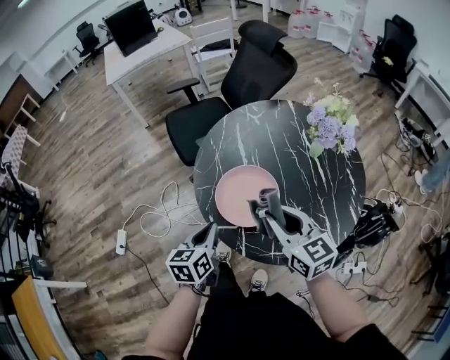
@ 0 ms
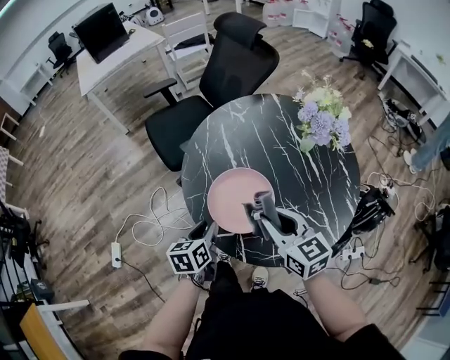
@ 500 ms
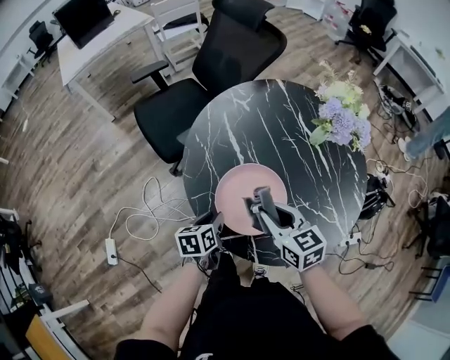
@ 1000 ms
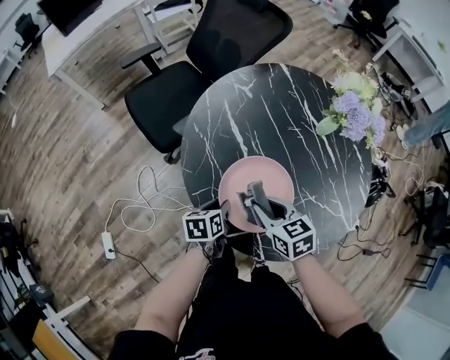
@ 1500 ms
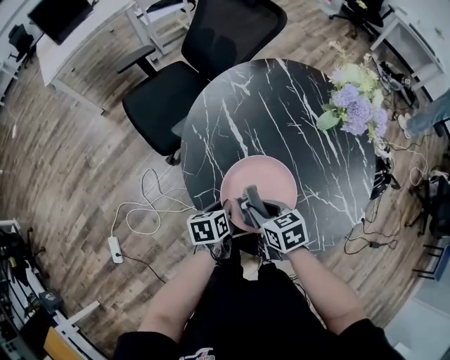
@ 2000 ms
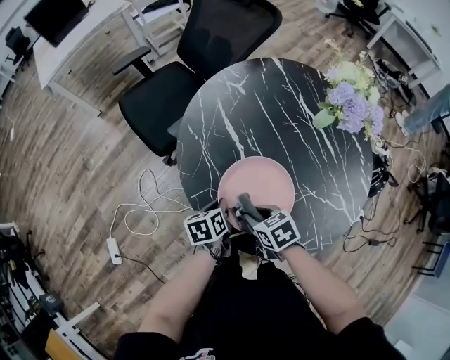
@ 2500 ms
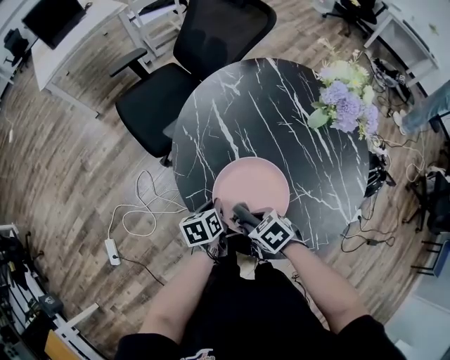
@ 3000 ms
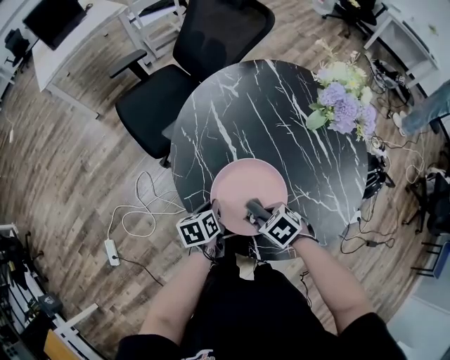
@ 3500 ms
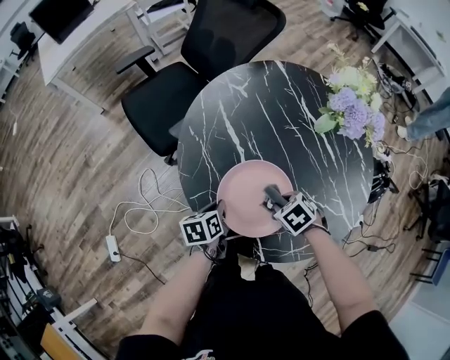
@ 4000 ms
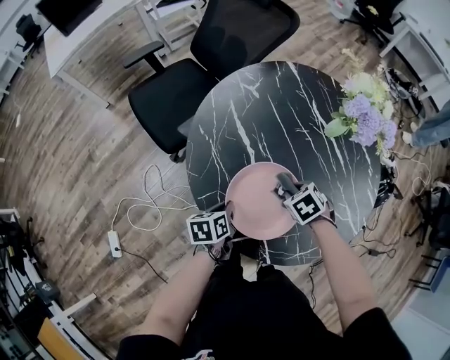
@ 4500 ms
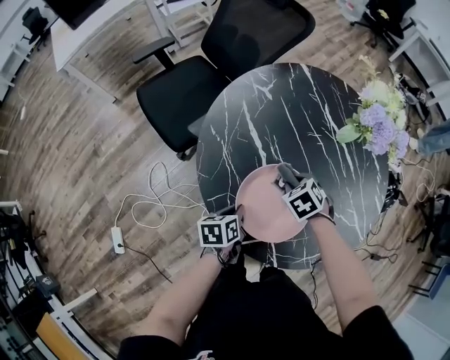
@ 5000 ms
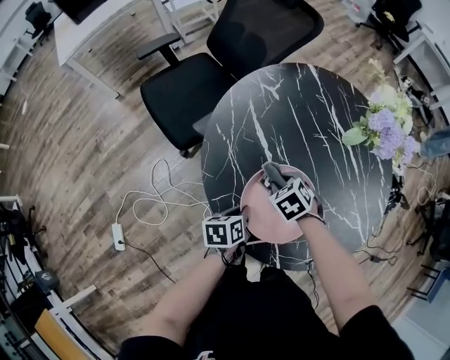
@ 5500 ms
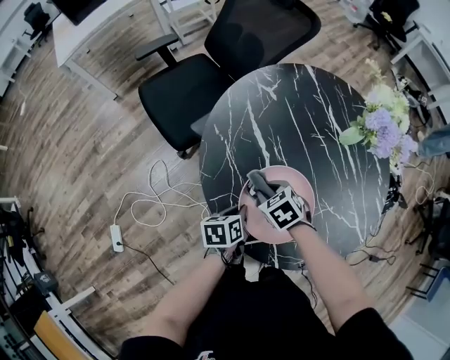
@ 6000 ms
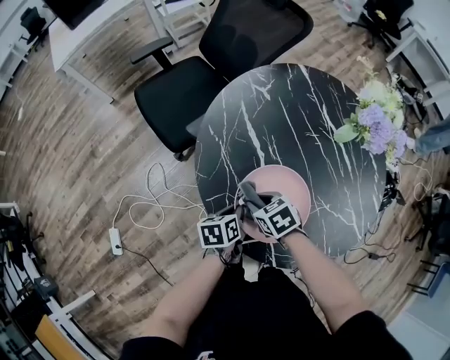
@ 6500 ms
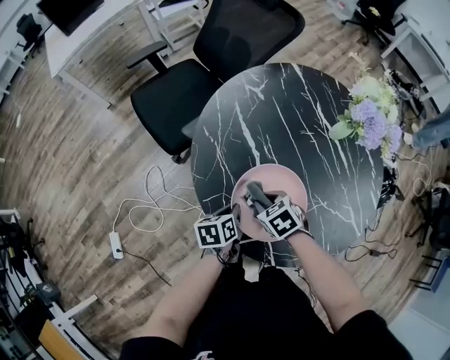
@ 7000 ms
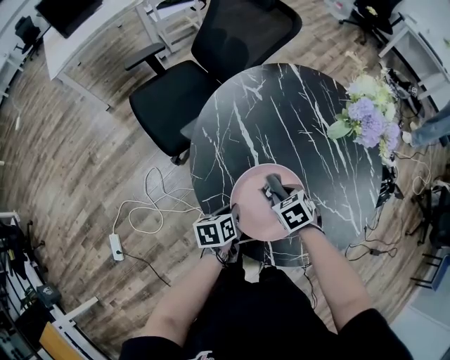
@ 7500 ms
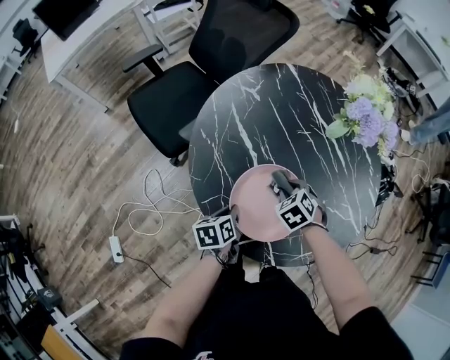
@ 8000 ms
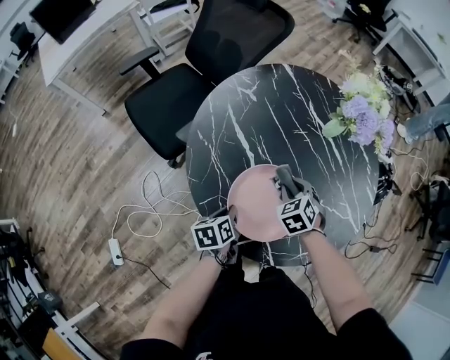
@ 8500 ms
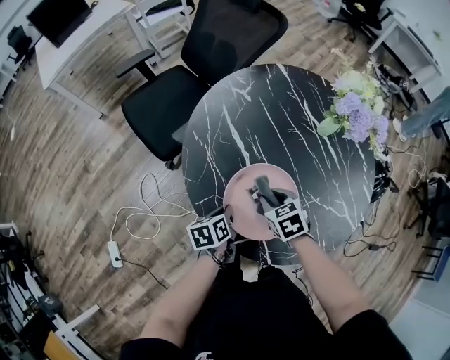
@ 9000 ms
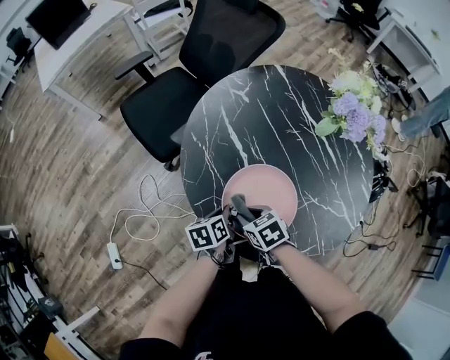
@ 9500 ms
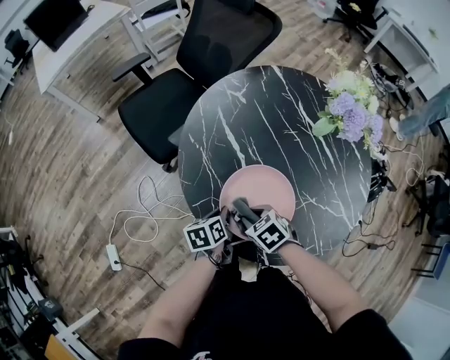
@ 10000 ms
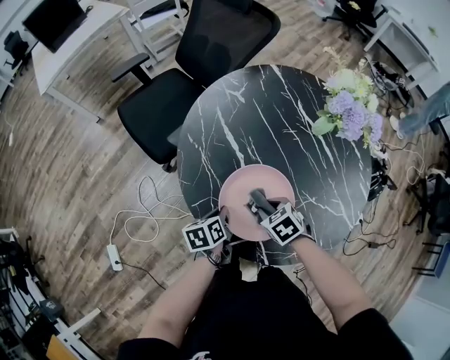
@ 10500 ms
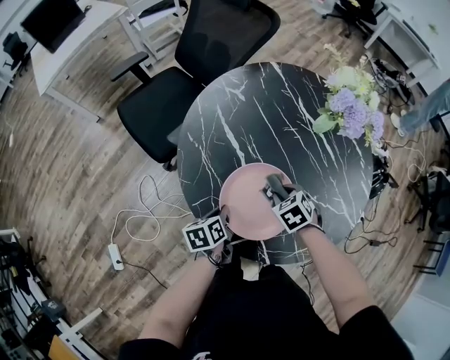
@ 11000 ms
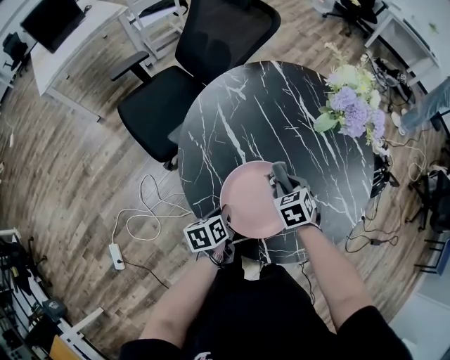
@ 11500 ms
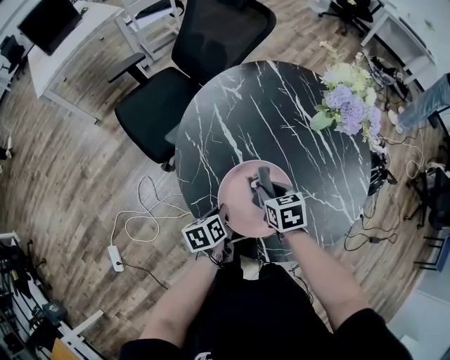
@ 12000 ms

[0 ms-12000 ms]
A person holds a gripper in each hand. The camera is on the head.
0 ms to 2000 ms: The left gripper heads downward and forward, covering about 25 cm, changes its angle by some 30 degrees, and opens, then closes once more; the right gripper is displaced downward, to the left and forward by approximately 25 cm, and tips its fingers downward by some 40 degrees.
2000 ms to 4000 ms: The right gripper moves approximately 10 cm, and changes its angle by approximately 30 degrees.
4000 ms to 6000 ms: The right gripper moves some 15 cm.
6000 ms to 8000 ms: The right gripper ends up some 10 cm from where it was.
8000 ms to 10000 ms: The right gripper ends up approximately 15 cm from where it was, and changes its angle by approximately 20 degrees.
10000 ms to 12000 ms: The right gripper ends up some 10 cm from where it was, and rotates approximately 30 degrees.

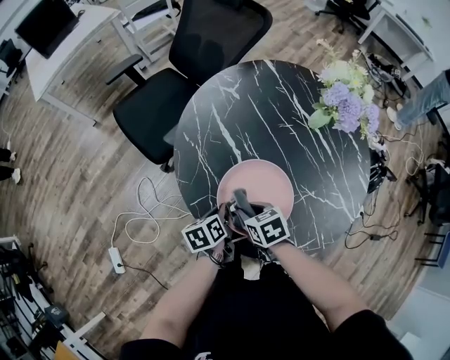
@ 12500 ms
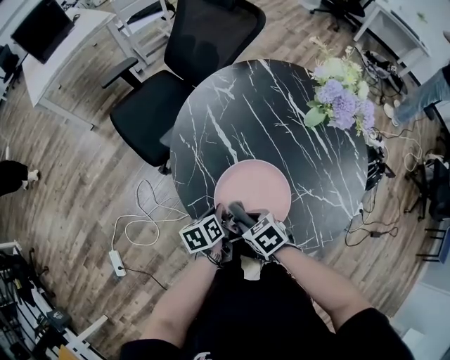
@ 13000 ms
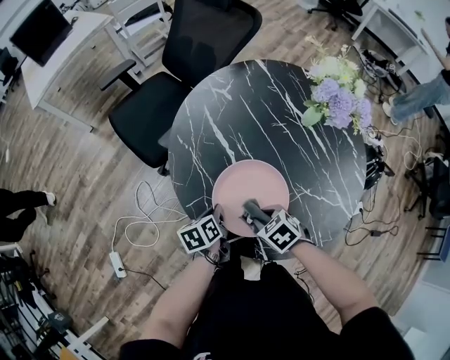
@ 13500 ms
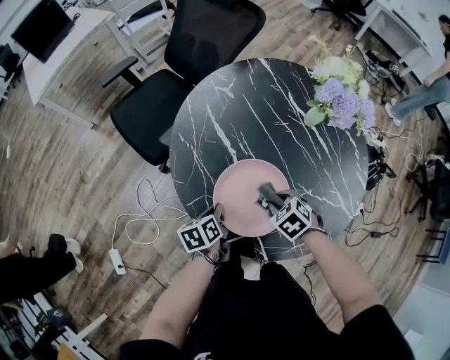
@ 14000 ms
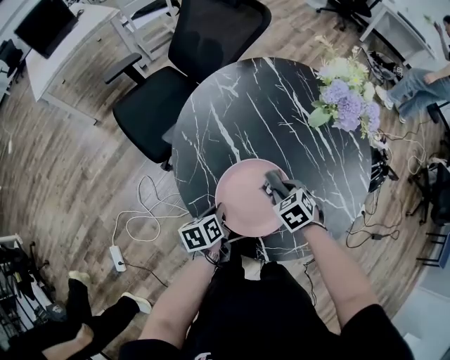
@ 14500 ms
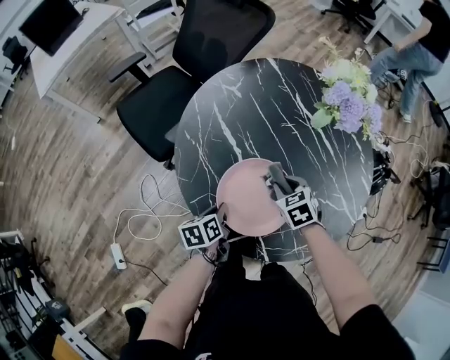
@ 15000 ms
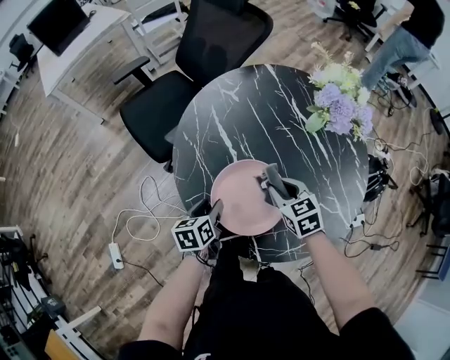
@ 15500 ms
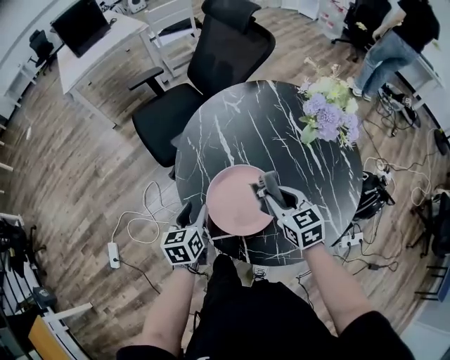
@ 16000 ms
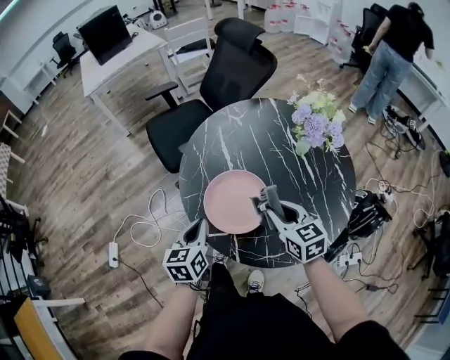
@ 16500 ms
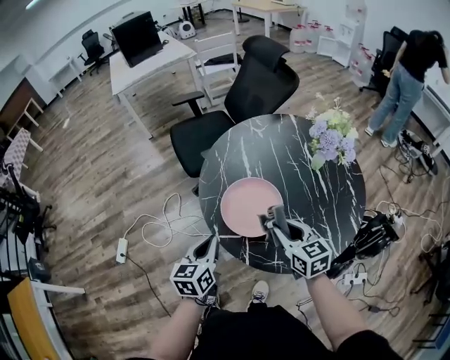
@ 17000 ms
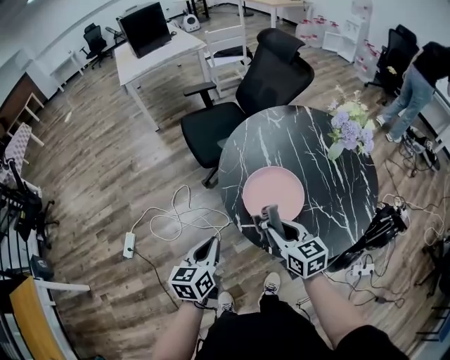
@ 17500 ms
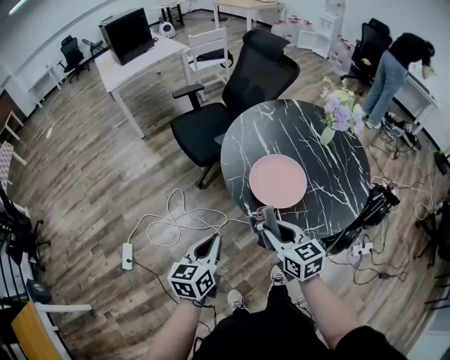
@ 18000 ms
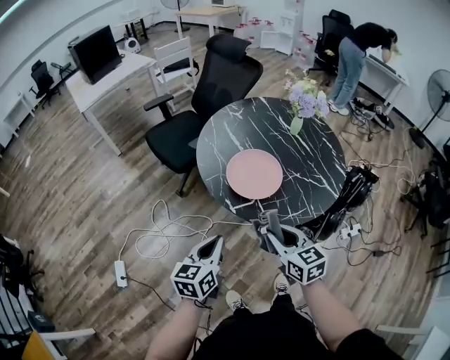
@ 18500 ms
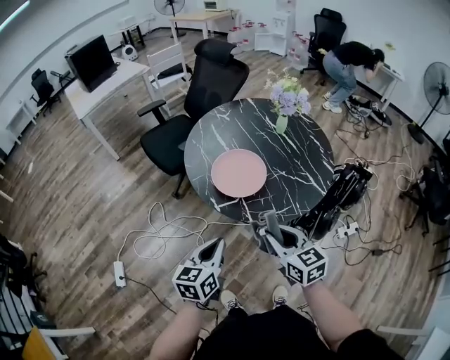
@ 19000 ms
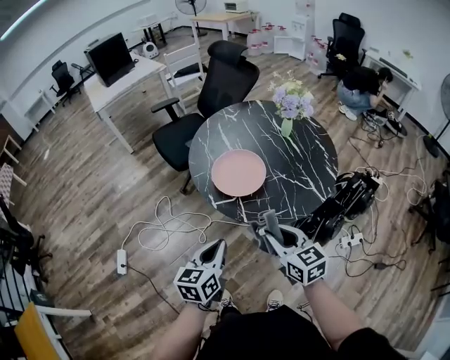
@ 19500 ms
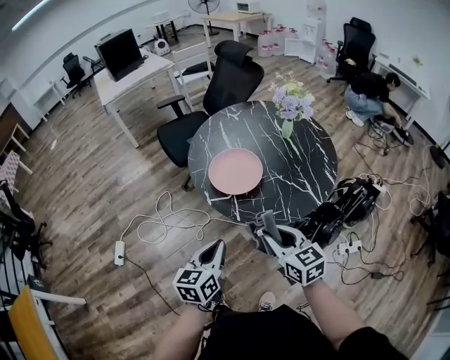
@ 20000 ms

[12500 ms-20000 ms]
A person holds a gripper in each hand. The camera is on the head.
12500 ms to 14500 ms: The right gripper goes roughly 15 cm to the right, and turns by approximately 30 degrees.
14500 ms to 16500 ms: The grippers both shift upward and backward by approximately 20 cm. The right gripper tilts its fingers roughly 40 degrees upward, while the left gripper rotates some 30 degrees, and opens, then closes again.
16500 ms to 18000 ms: Both grippers travel together to the left and backward, about 25 cm.
18000 ms to 20000 ms: The two grippers go approximately 25 cm to the right and backward.

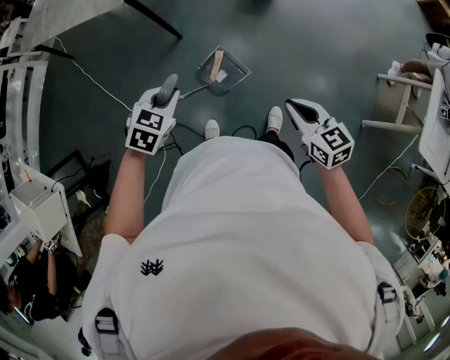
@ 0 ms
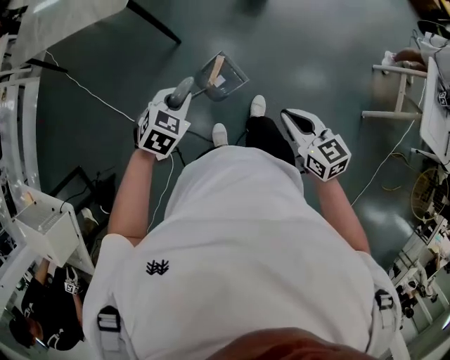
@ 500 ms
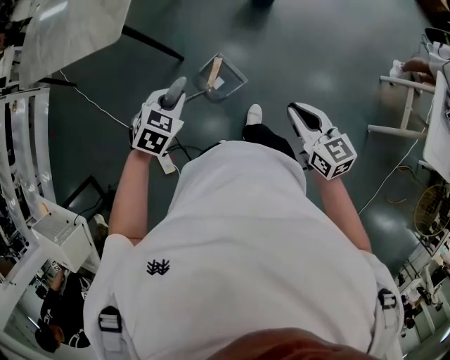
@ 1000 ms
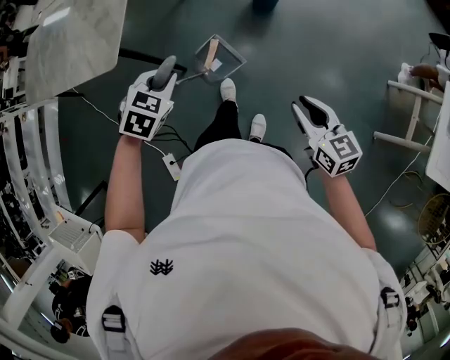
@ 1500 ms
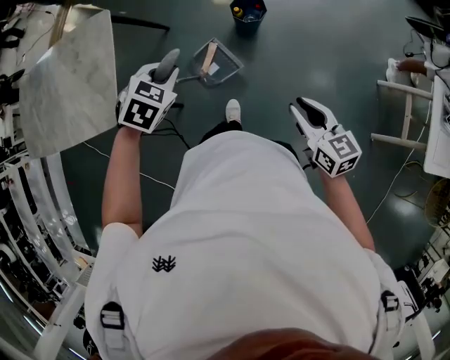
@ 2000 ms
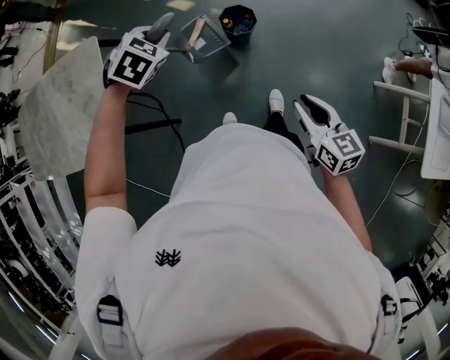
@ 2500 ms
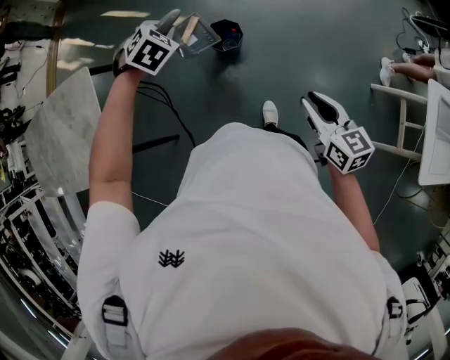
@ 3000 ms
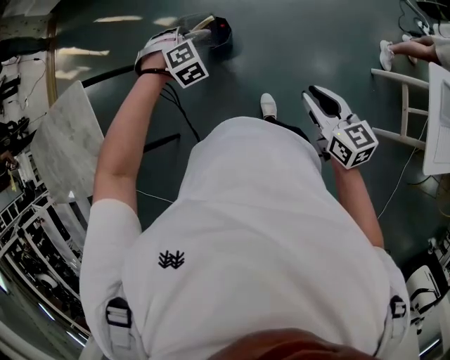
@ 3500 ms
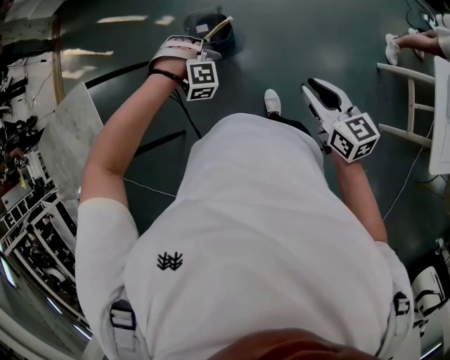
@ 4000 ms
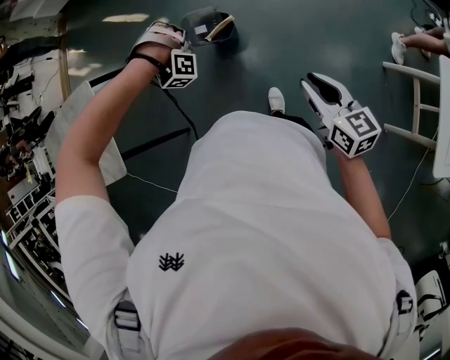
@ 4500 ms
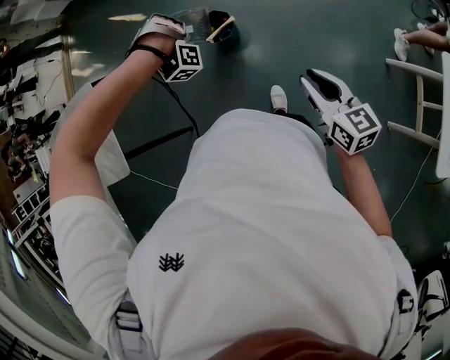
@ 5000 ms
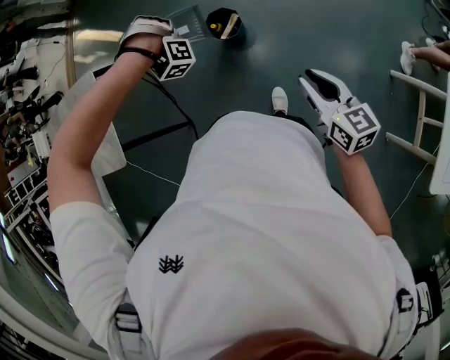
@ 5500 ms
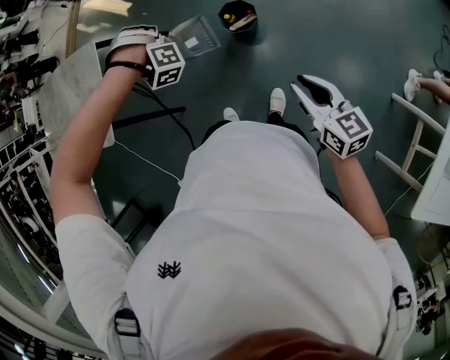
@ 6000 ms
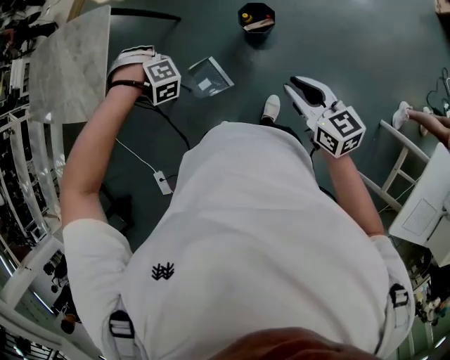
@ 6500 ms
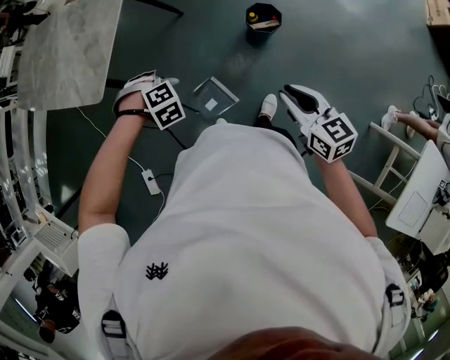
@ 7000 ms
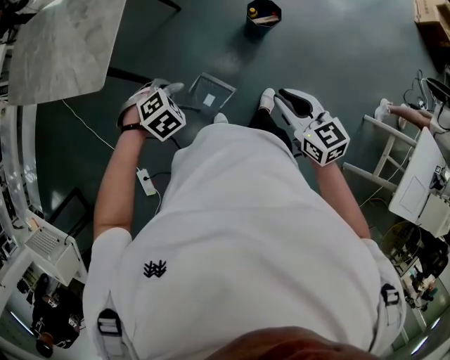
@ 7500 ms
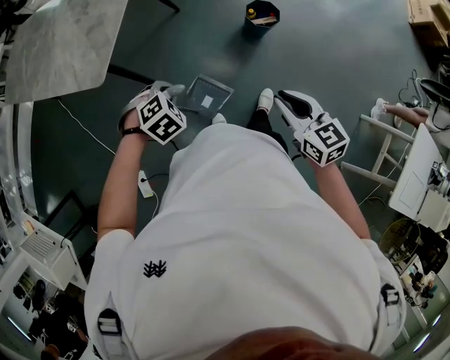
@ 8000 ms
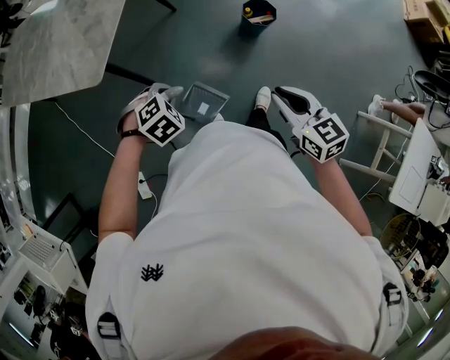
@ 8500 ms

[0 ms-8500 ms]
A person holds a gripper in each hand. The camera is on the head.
0 ms to 2000 ms: The right gripper changes place by roughly 40 cm, and swivels approximately 20 degrees.
2000 ms to 4000 ms: The right gripper changes place by some 30 cm.
4000 ms to 6500 ms: The right gripper moves about 15 cm, and rotates approximately 30 degrees.
6500 ms to 8500 ms: The right gripper moves some 25 cm.
